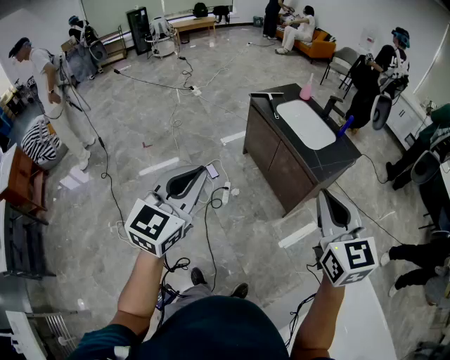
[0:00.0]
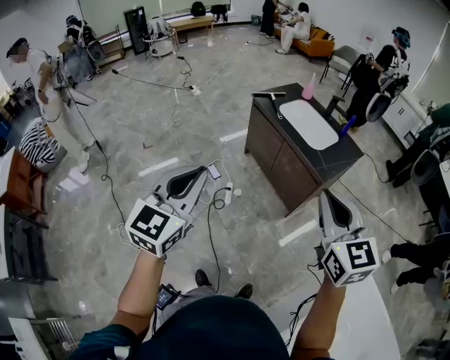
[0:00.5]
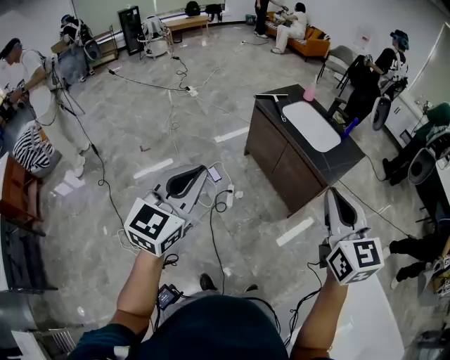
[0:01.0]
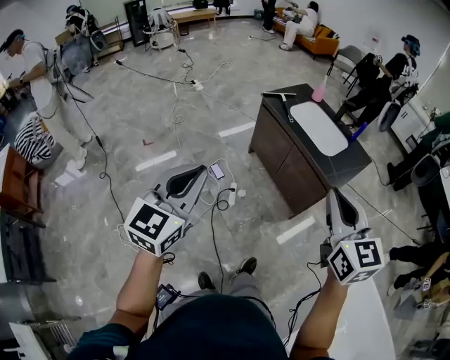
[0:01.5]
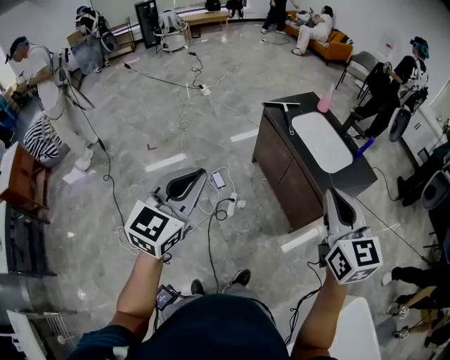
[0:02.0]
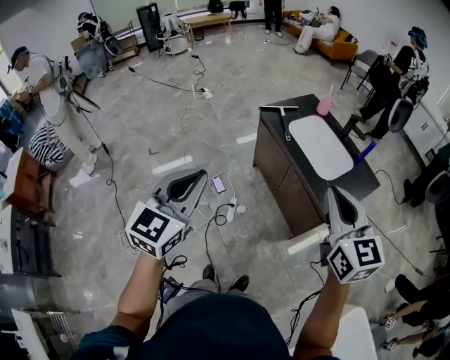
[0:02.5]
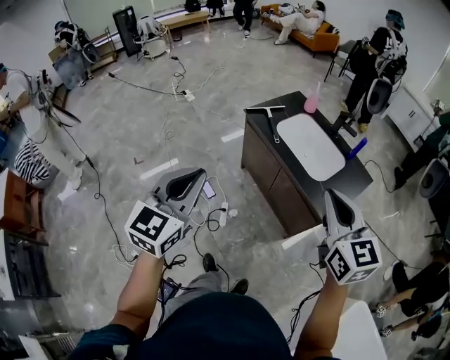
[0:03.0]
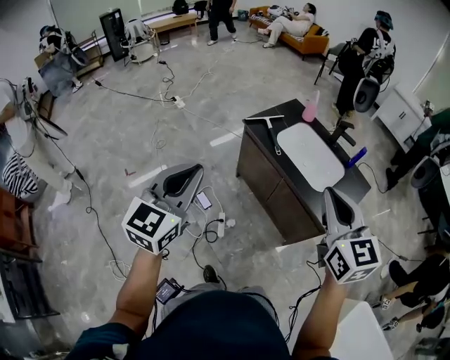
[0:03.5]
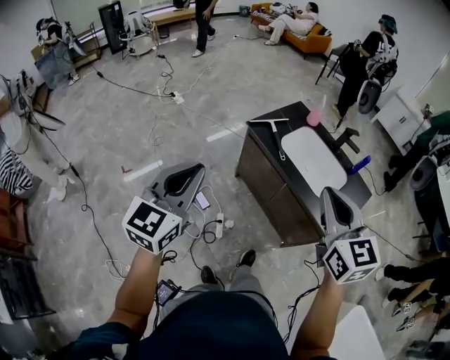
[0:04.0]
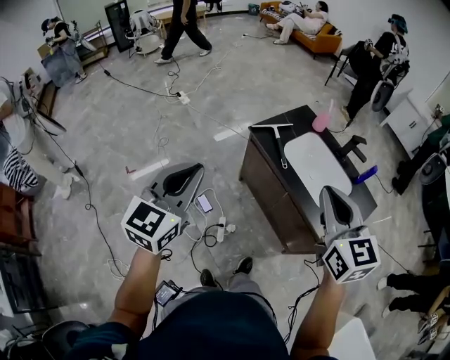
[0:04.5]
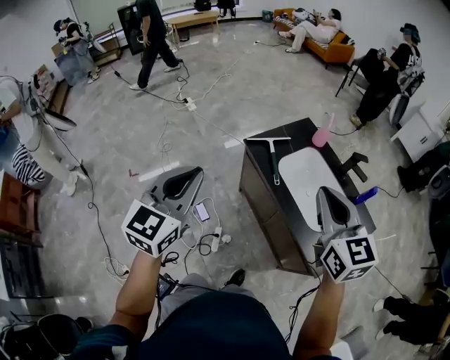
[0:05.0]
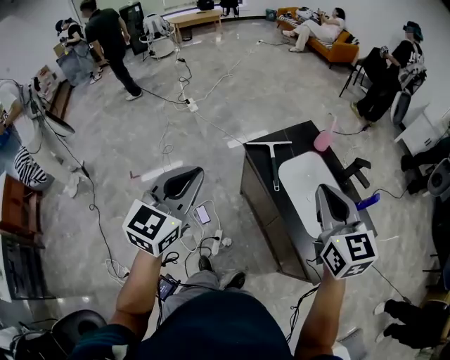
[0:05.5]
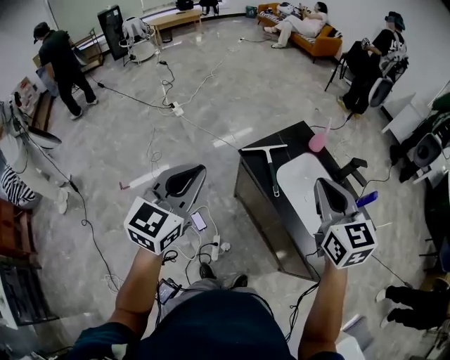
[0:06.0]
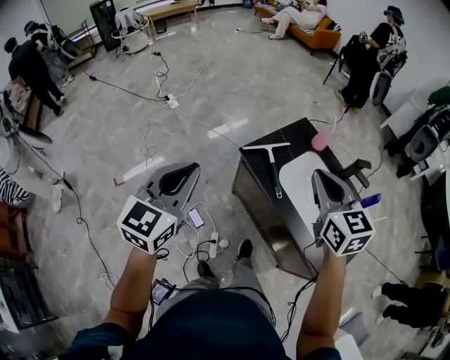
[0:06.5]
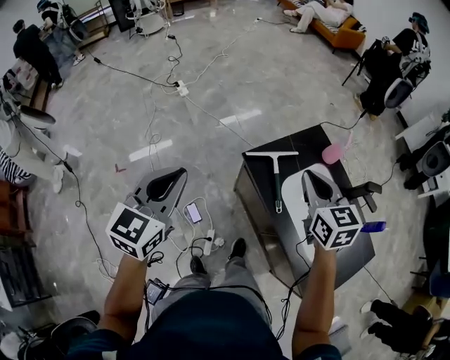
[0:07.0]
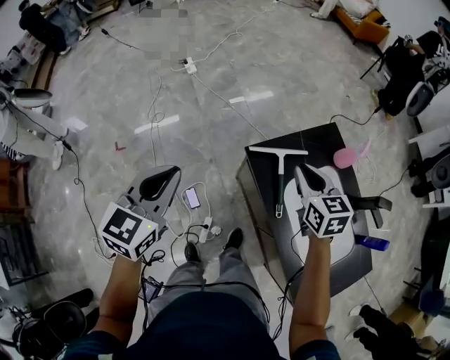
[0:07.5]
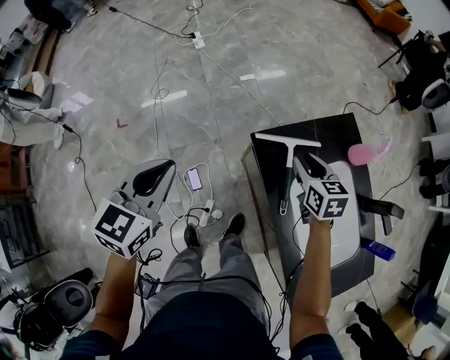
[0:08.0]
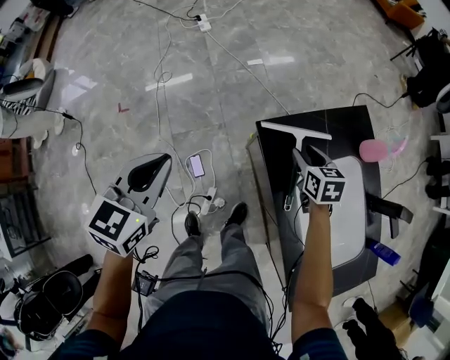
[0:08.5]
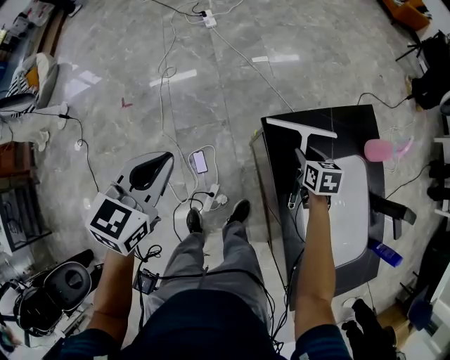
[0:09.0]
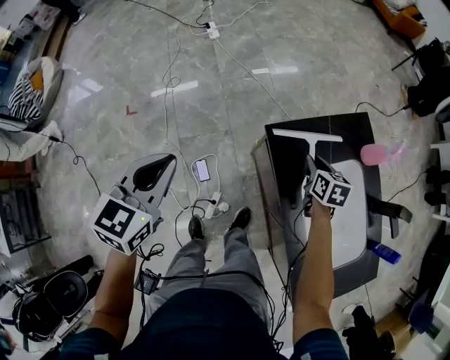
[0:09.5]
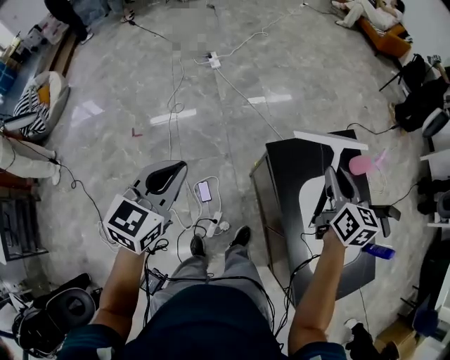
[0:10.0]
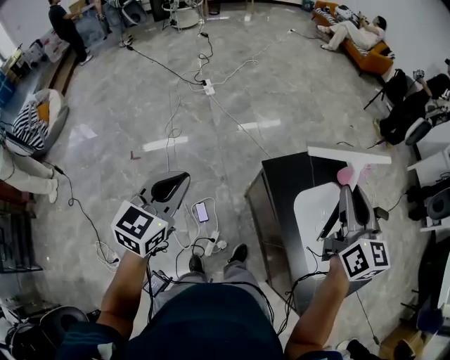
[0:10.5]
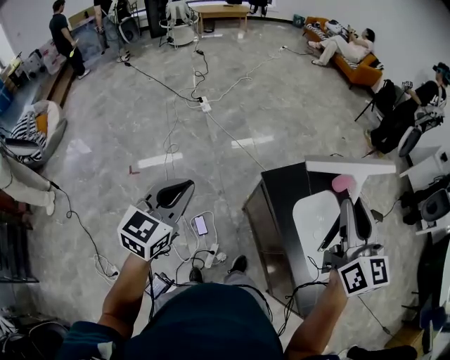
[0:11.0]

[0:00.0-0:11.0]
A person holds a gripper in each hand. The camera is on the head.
0:00.0 to 0:02.0: The grippers both shift forward by about 20 cm.
0:02.0 to 0:03.5: Both grippers travel together forward, roughly 20 cm.
0:03.5 to 0:05.5: The two grippers go roughly 25 cm forward.
0:05.5 to 0:07.5: The two grippers go some 35 cm forward and downward. The right gripper rotates some 20 degrees.
0:07.5 to 0:09.0: The left gripper travels downward by approximately 10 cm. Meanwhile the right gripper goes roughly 25 cm downward, turns by approximately 20 degrees, and opens its fingers.
0:09.0 to 0:11.0: The right gripper moves upward, some 60 cm, and angles its fingers upward, by some 50 degrees. Meanwhile the left gripper travels upward, backward and to the left by roughly 25 cm.

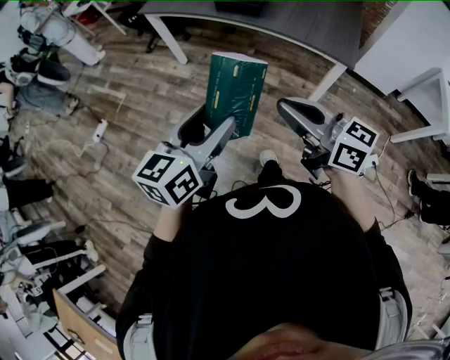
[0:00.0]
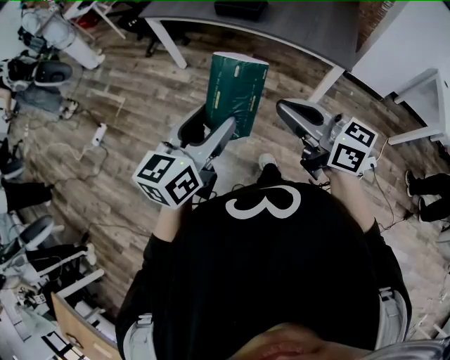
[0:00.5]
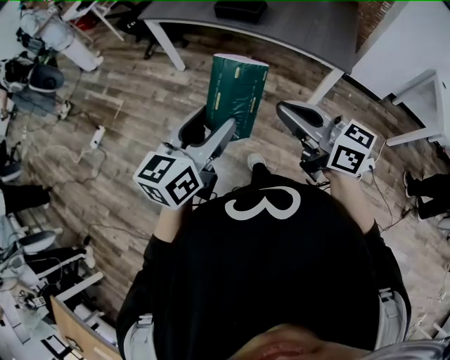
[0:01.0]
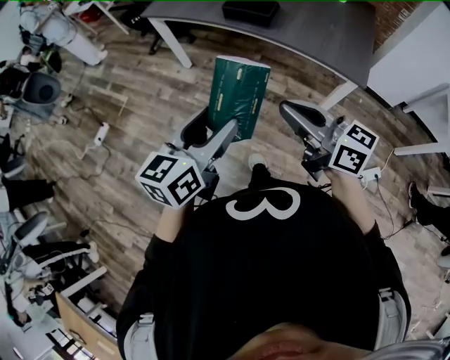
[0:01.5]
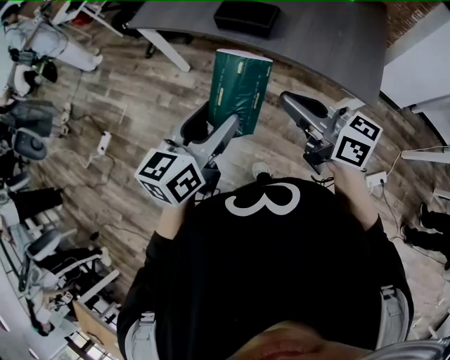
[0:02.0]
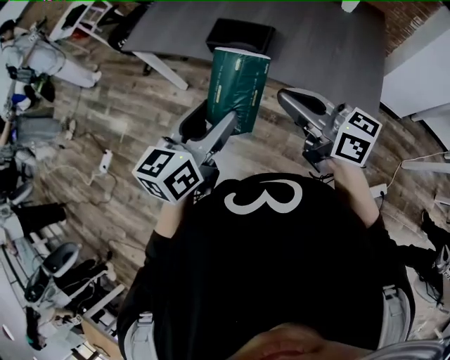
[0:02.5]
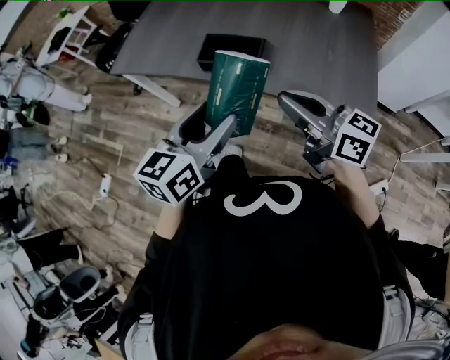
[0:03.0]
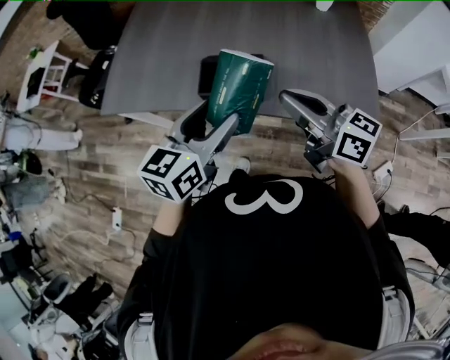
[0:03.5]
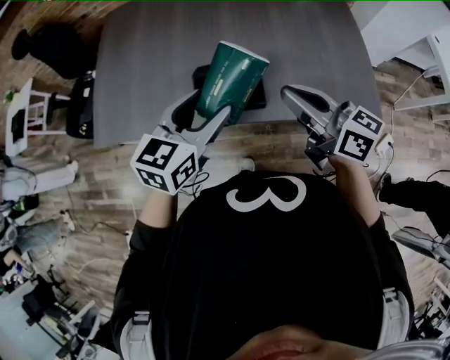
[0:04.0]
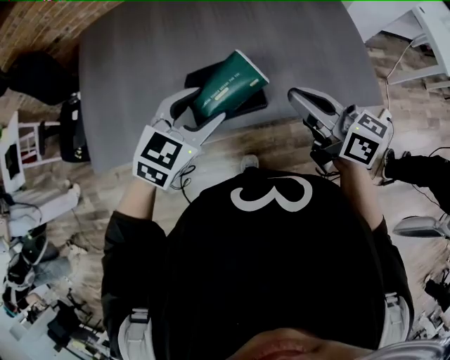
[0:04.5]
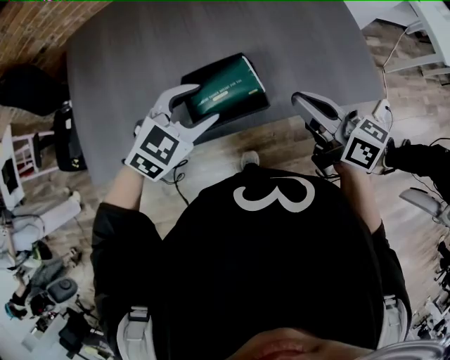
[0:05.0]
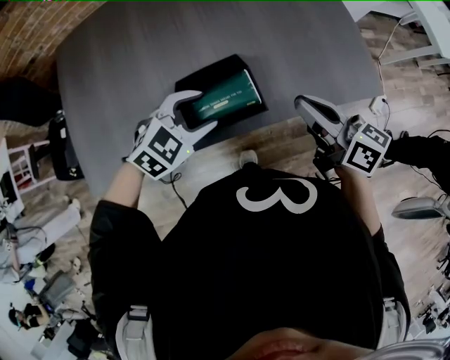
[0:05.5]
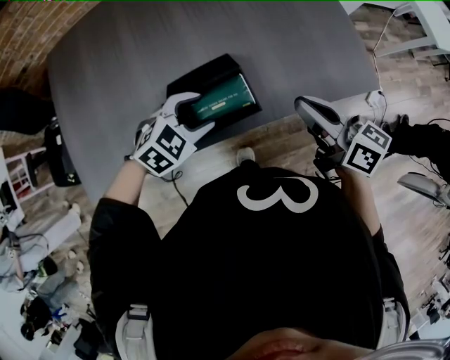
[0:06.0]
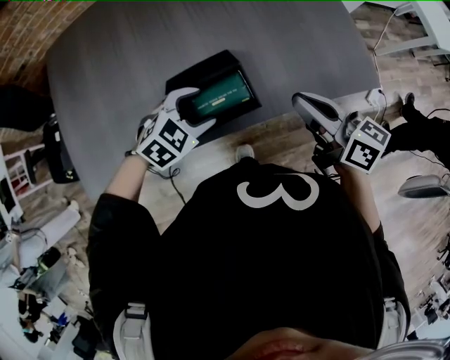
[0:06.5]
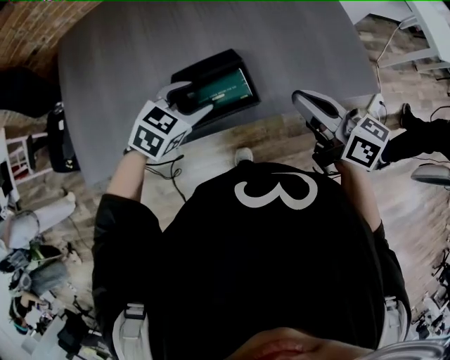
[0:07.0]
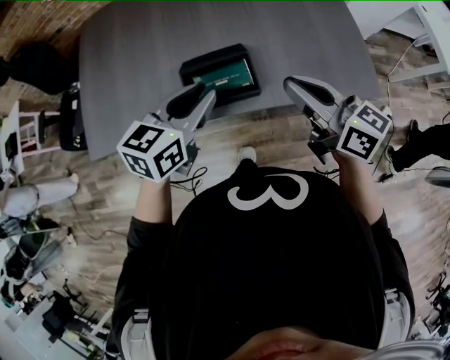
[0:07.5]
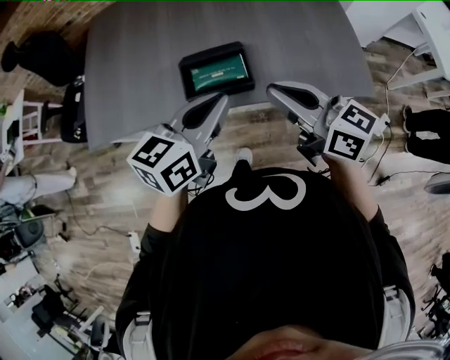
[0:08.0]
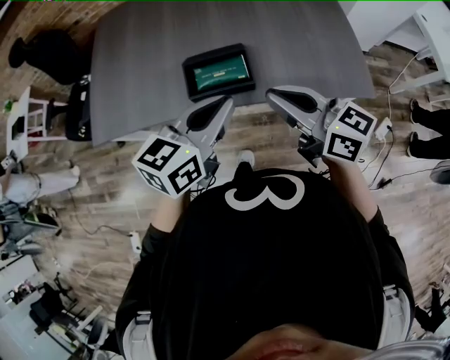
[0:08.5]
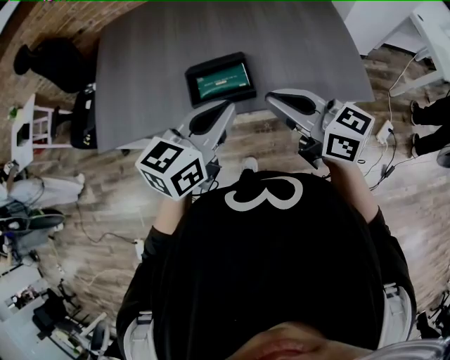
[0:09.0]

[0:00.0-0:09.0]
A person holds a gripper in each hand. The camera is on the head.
0:00.0 to 0:02.0: The two grippers go roughly 20 cm forward.
0:02.0 to 0:04.5: The left gripper ends up approximately 40 cm from where it was, and turns by roughly 70 degrees; the right gripper ends up approximately 30 cm from where it was, and swivels roughly 40 degrees.
0:04.5 to 0:07.0: The left gripper goes approximately 10 cm downward.
0:07.0 to 0:09.0: The right gripper heads backward and upward, covering about 10 cm, and rotates some 20 degrees. The left gripper is displaced upward and backward by approximately 20 cm, points its fingers about 30 degrees further upward, and closes up.

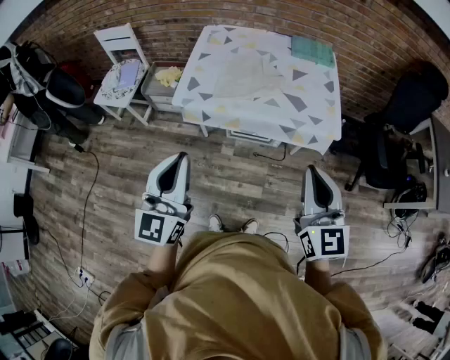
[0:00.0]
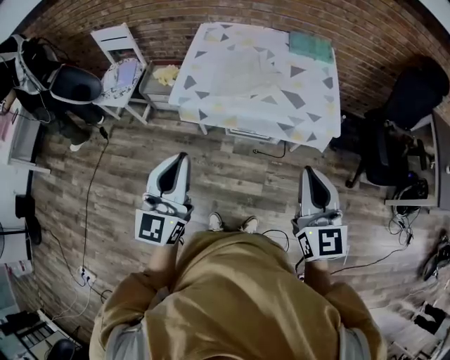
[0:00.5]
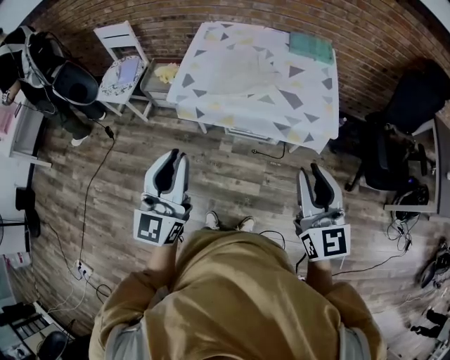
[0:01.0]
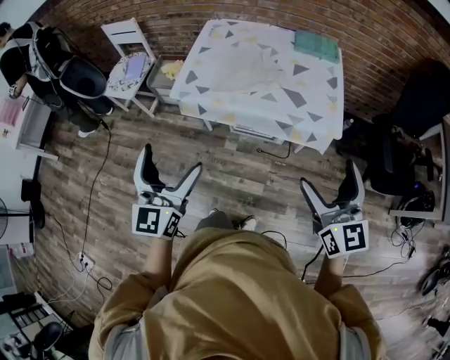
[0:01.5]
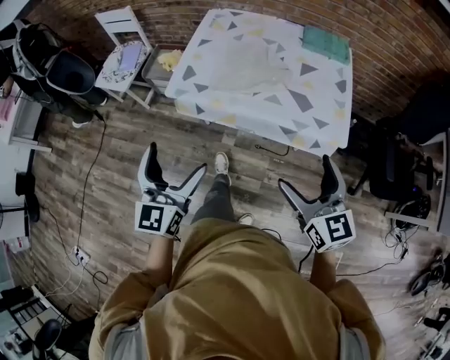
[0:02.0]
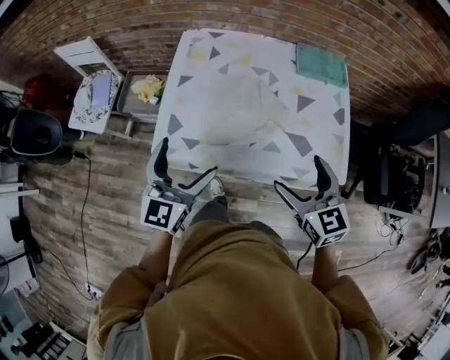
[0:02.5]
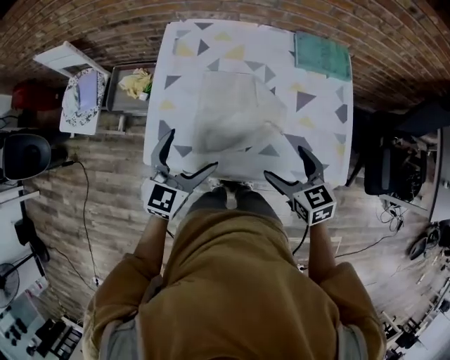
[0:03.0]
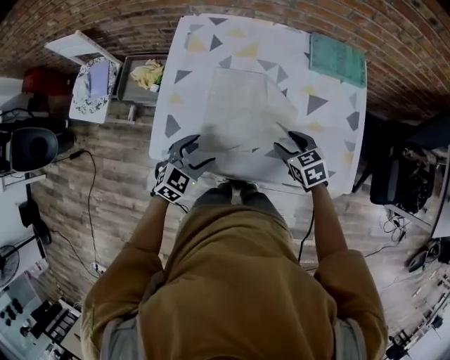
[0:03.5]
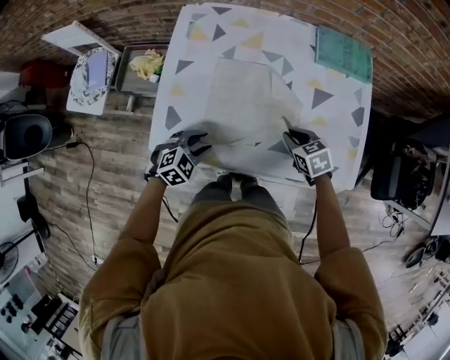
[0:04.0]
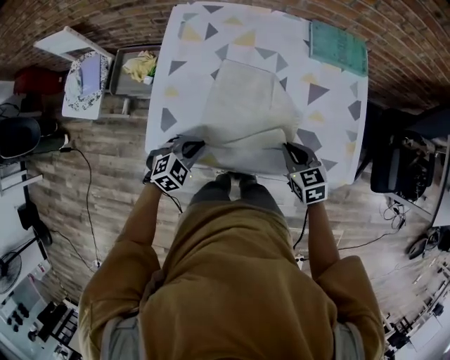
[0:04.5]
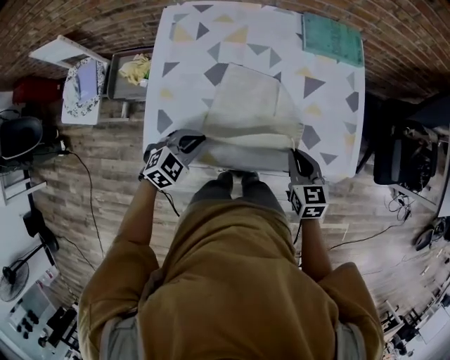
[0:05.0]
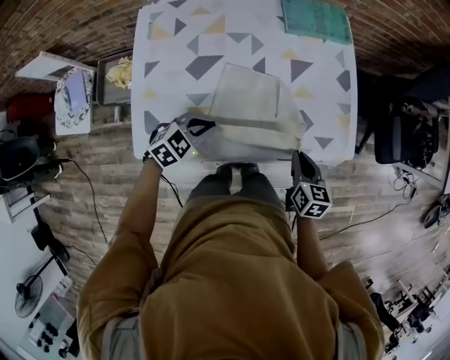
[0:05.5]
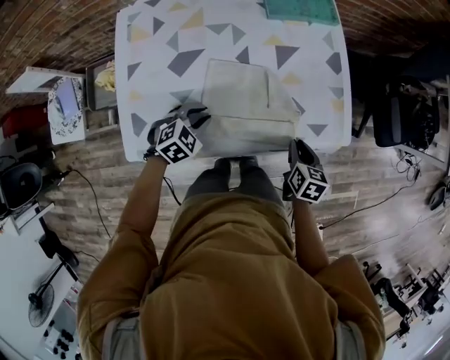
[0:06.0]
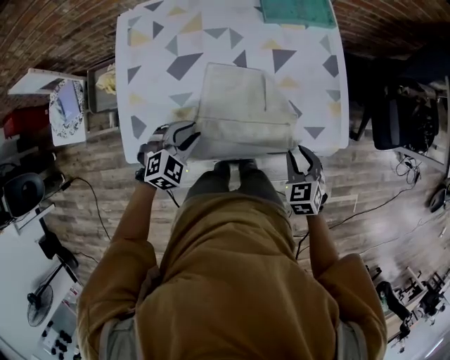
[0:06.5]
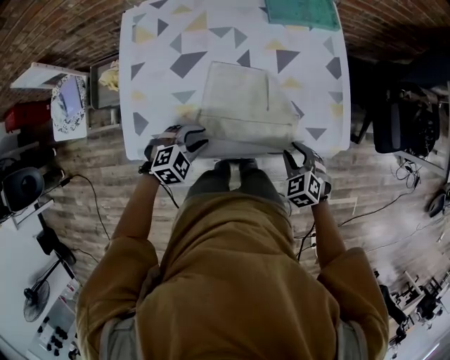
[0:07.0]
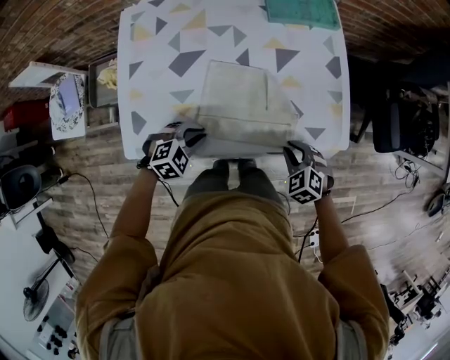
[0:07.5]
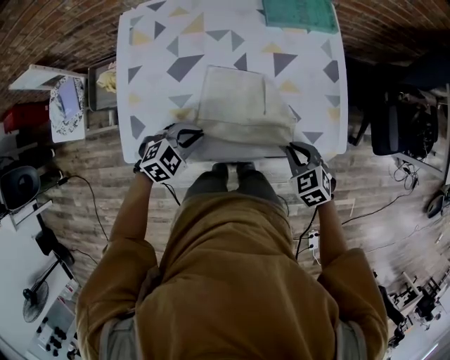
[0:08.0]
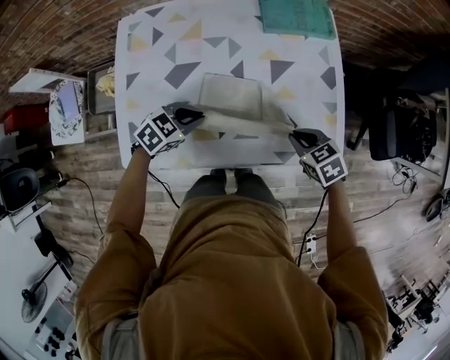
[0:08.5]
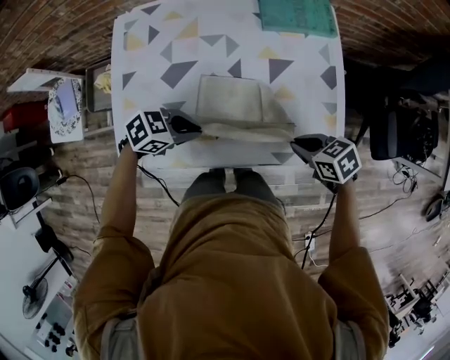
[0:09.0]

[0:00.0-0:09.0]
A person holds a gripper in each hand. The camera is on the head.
0:00.0 to 0:02.0: Both grippers move downward and forward, approximately 10 cm. The right gripper opens up, while the left gripper opens.
0:02.0 to 0:04.5: The two grippers go approximately 40 cm forward and downward. The left gripper angles its fingers downward, by some 50 degrees, and closes up. The right gripper tilts its fingers roughly 30 degrees downward, and closes its fingers.
0:04.5 to 0:07.0: The right gripper ends up about 15 cm from where it was, and changes its angle by about 30 degrees. Meanwhile the left gripper moves up and down over approximately 5 cm, changing direction 2 times.
0:07.0 to 0:09.0: The left gripper ends up roughly 10 cm from where it was, and rotates approximately 40 degrees; the right gripper changes place by roughly 10 cm, and rotates some 40 degrees.
